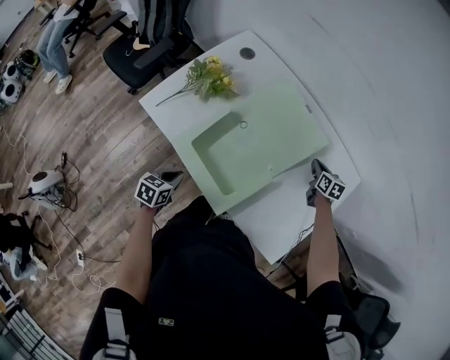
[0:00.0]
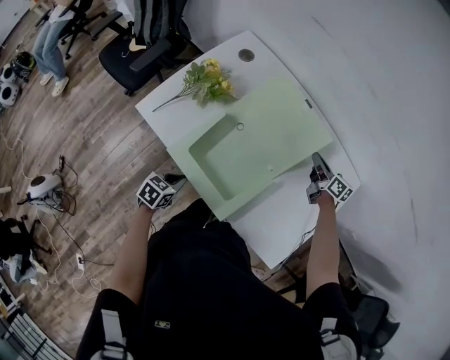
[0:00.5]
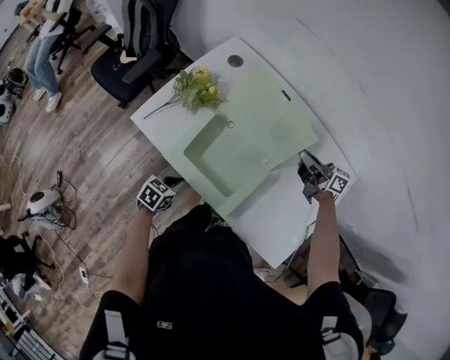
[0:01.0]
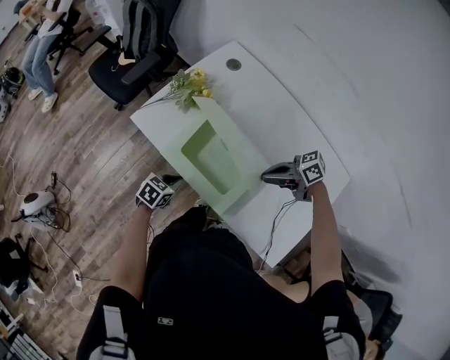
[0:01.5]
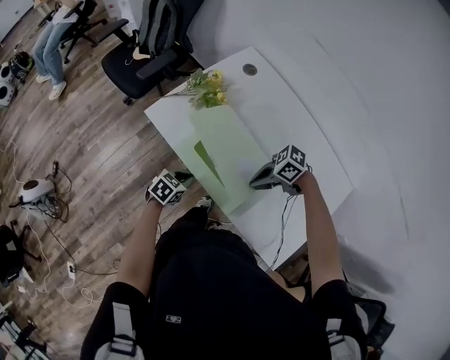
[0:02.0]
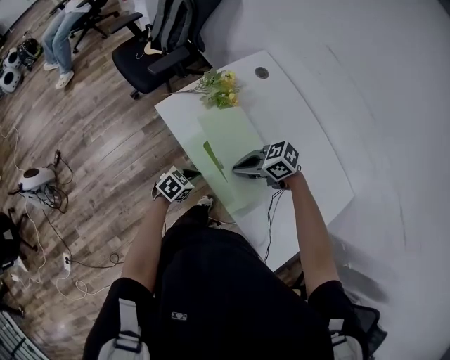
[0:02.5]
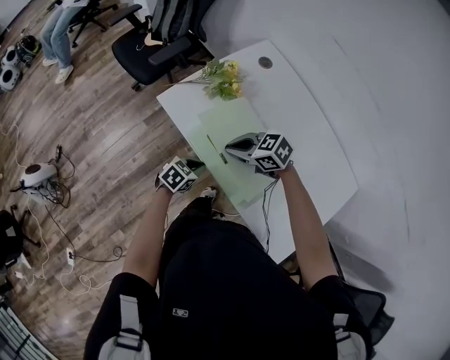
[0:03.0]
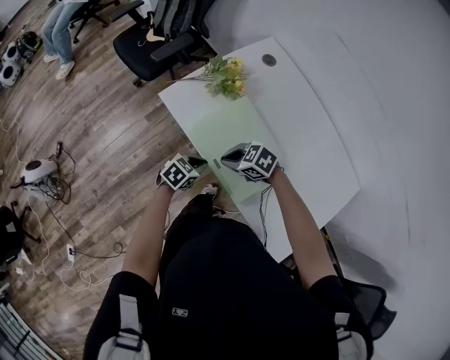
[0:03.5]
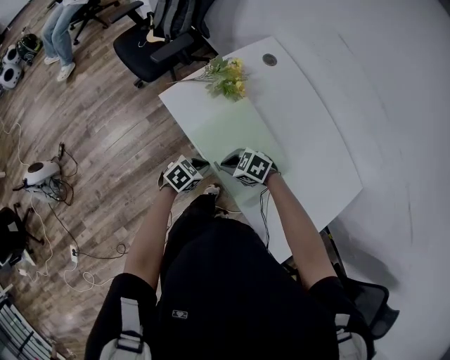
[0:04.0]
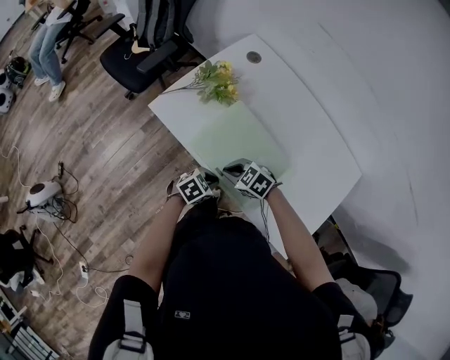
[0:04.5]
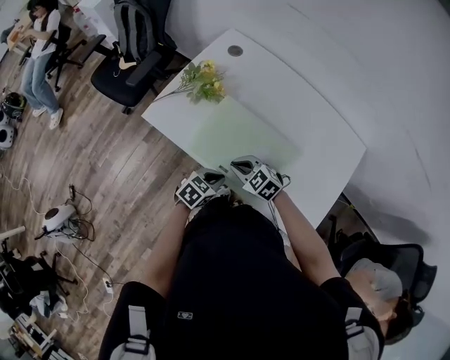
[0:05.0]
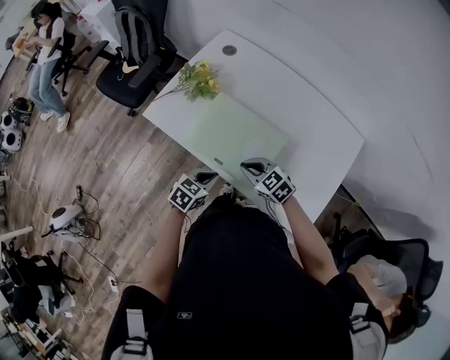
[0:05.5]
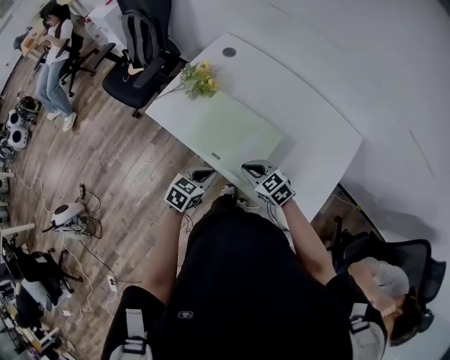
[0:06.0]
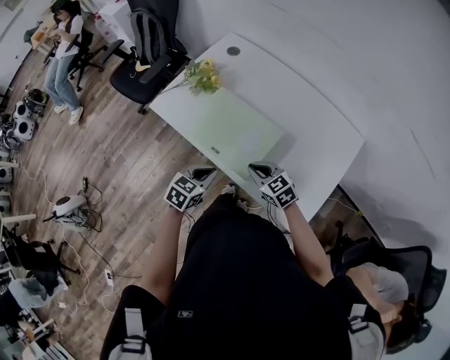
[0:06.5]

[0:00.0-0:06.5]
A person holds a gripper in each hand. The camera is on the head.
0:00.0 to 0:02.0: The right gripper changes place by some 35 cm, and swivels approximately 90 degrees.
0:02.0 to 0:04.5: The left gripper shifts by approximately 5 cm; the right gripper moves approximately 15 cm, and swivels some 40 degrees.
0:04.5 to 0:06.5: The right gripper shifts by approximately 15 cm, and rotates about 30 degrees. The left gripper travels upward by about 10 cm, and changes its angle by some 20 degrees.

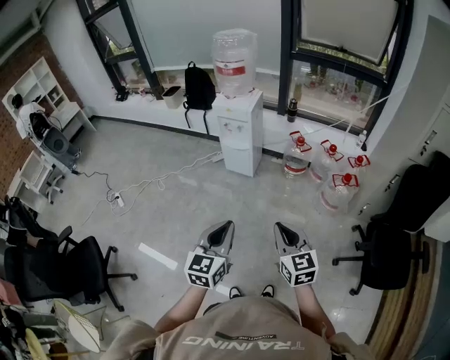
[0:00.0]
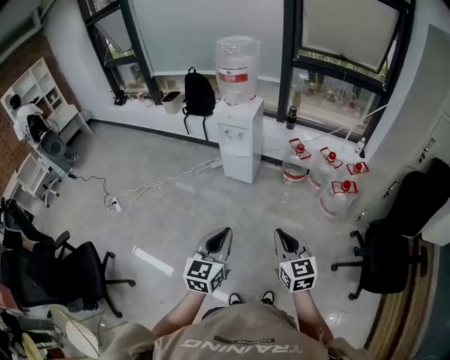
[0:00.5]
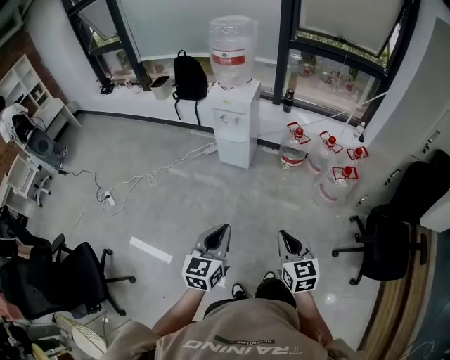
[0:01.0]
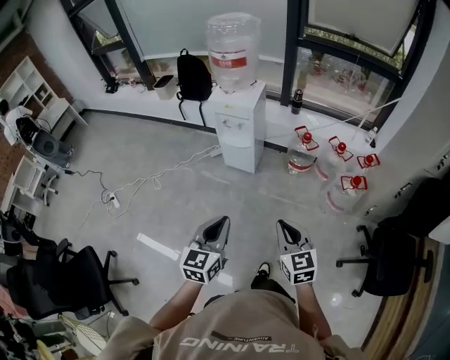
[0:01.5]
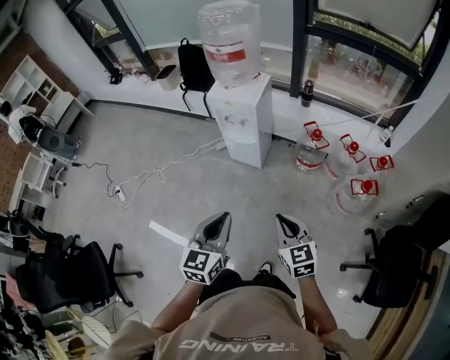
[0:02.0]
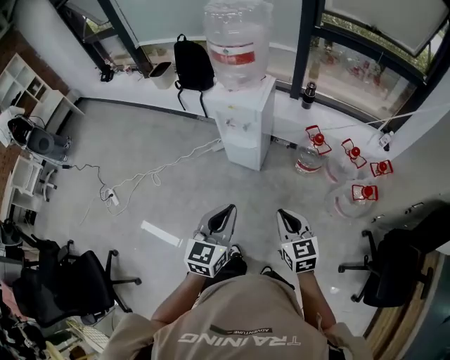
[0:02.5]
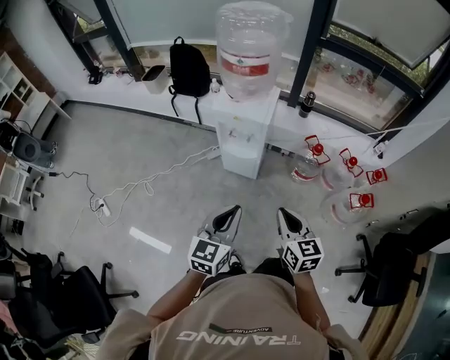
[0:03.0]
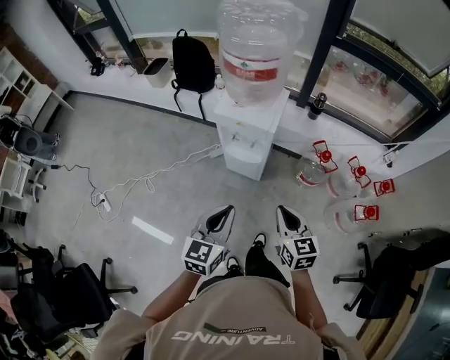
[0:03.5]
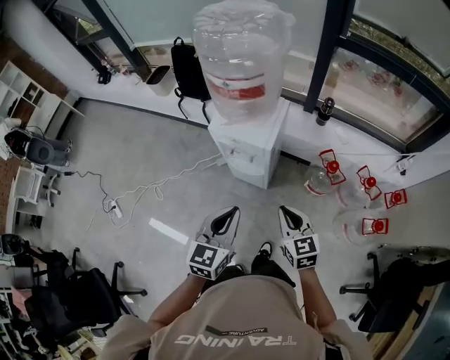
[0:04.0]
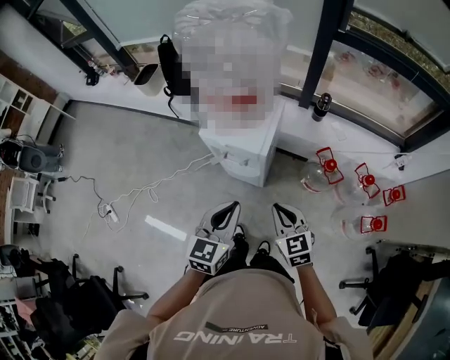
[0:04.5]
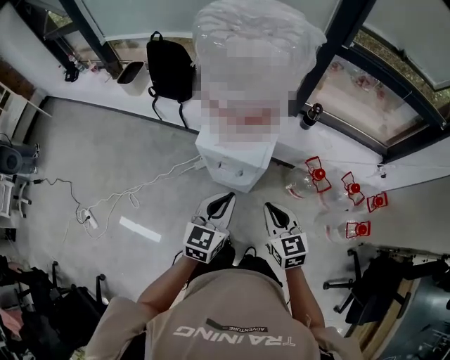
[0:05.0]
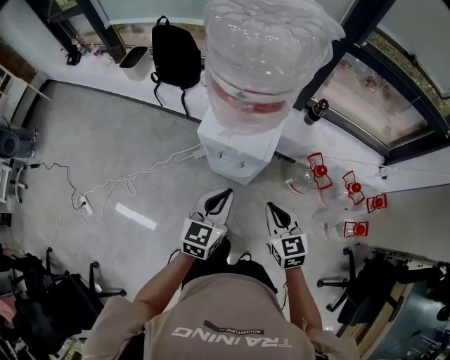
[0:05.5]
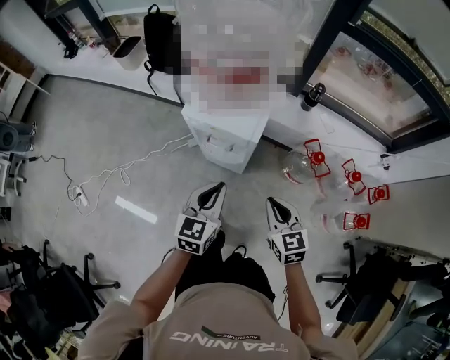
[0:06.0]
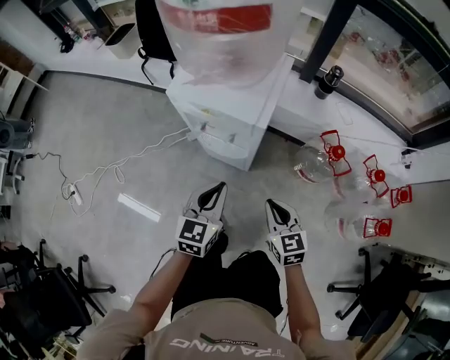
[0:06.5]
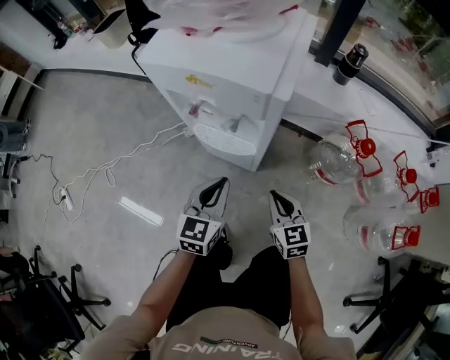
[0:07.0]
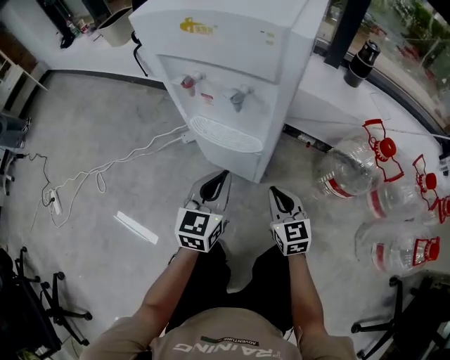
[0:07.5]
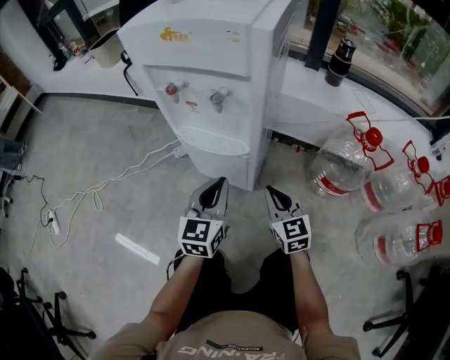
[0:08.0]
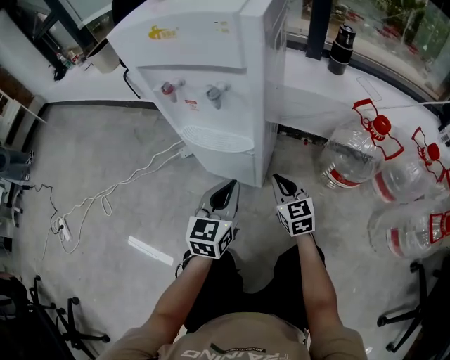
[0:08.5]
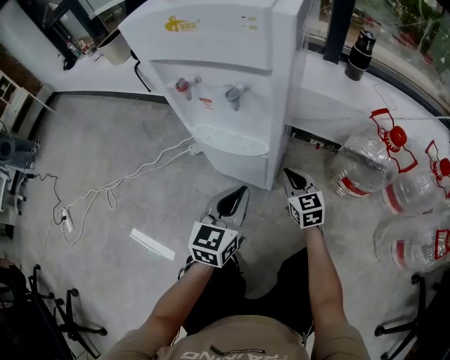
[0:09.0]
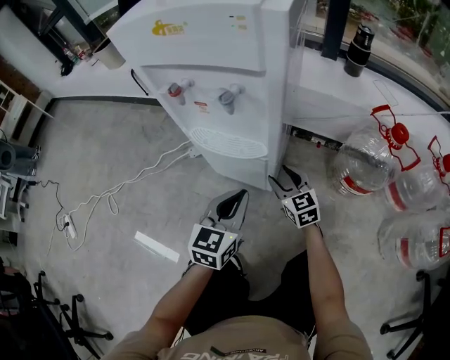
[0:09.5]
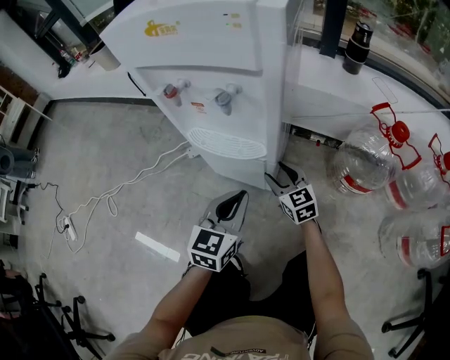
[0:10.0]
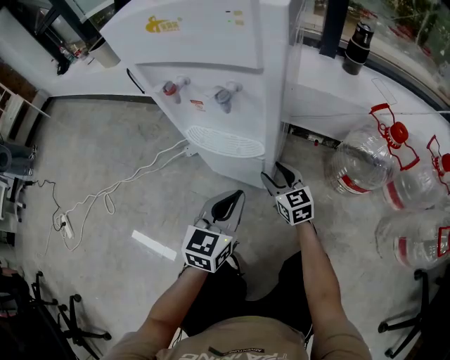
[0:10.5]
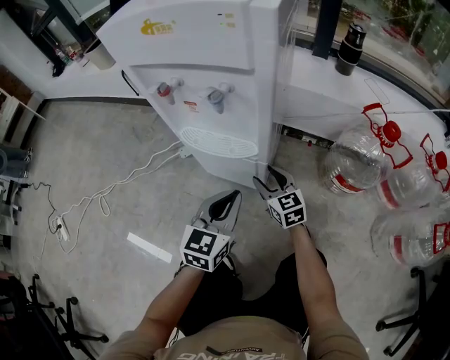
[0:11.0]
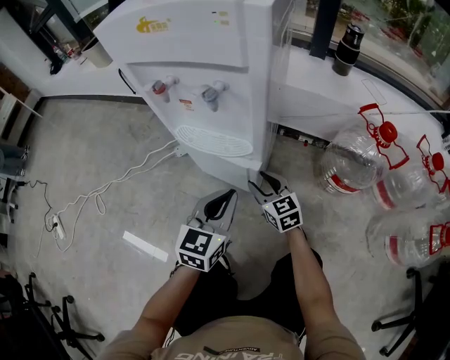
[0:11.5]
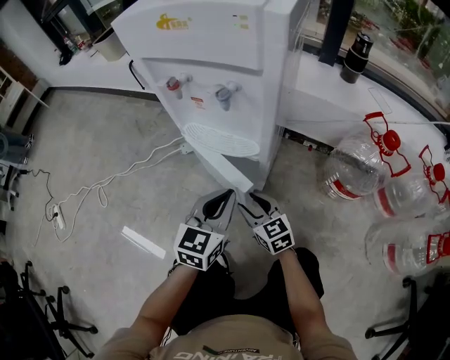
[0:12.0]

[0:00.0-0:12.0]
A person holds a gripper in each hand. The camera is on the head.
0:00.0 to 0:02.0: Both grippers travel together forward, about 25 cm.
0:02.0 to 0:04.0: Both grippers travel together forward, roughly 30 cm.
0:04.0 to 0:06.0: The right gripper shifts about 10 cm downward and forward, while the left gripper moves downward and forward, about 15 cm.
0:06.0 to 0:08.0: Both grippers move downward, about 40 cm.
0:08.0 to 0:10.0: The right gripper shifts roughly 15 cm forward and downward, and opens its fingers.
0:10.0 to 0:12.0: The right gripper moves backward and to the left, approximately 10 cm.

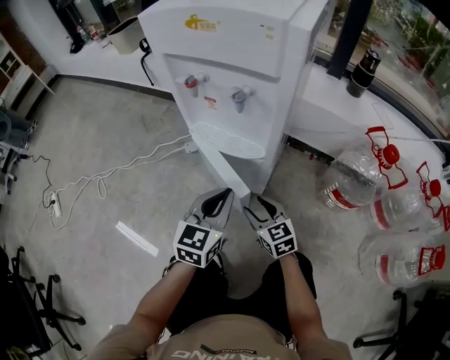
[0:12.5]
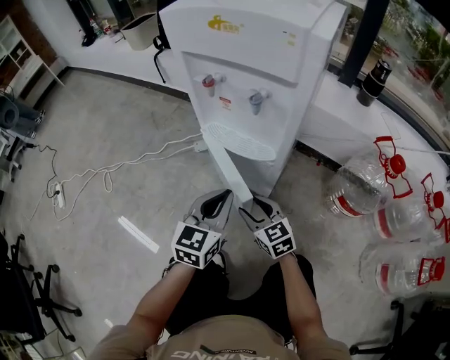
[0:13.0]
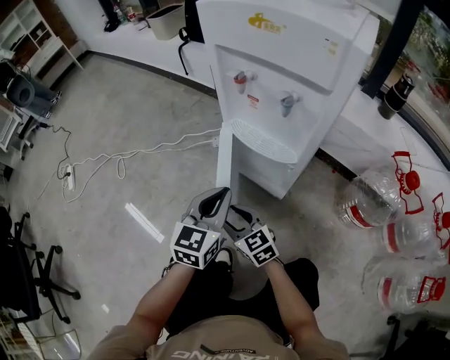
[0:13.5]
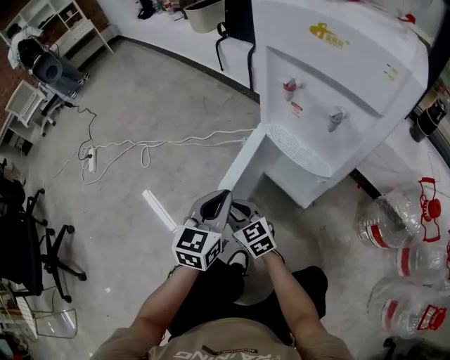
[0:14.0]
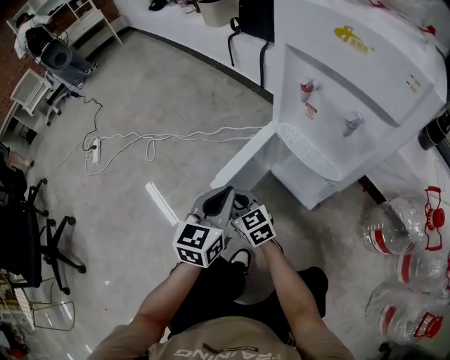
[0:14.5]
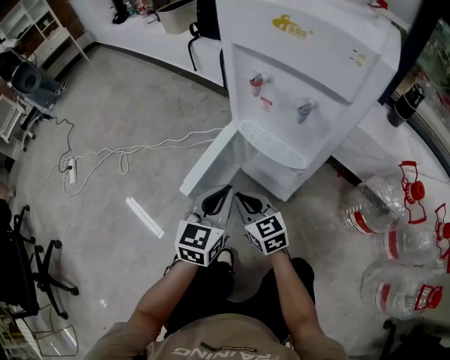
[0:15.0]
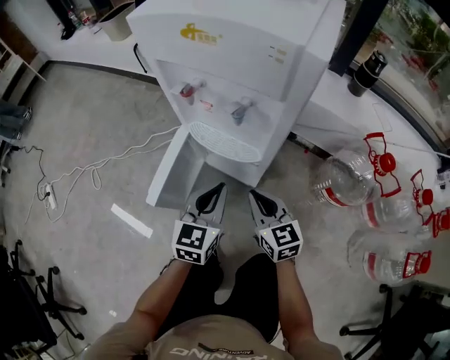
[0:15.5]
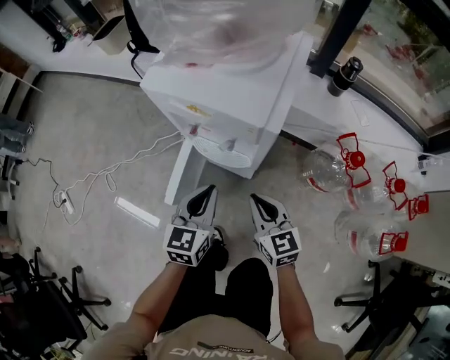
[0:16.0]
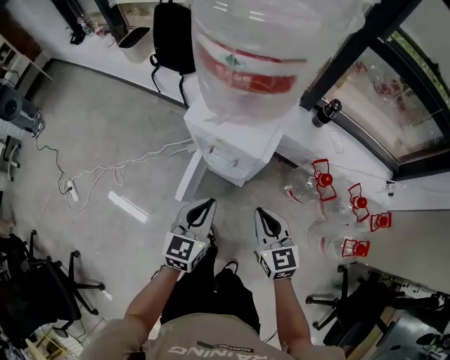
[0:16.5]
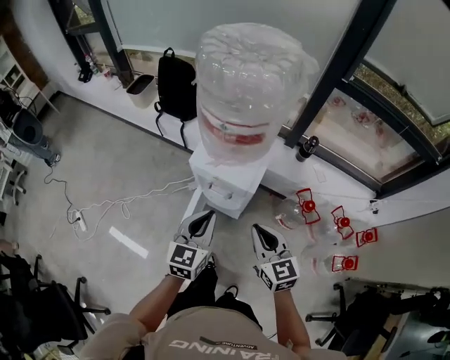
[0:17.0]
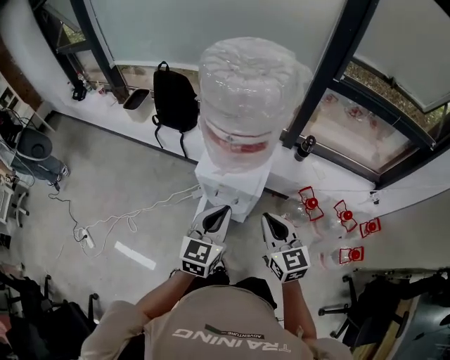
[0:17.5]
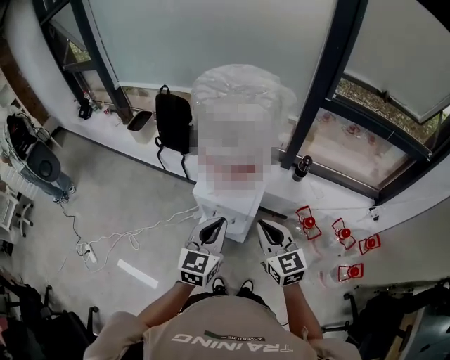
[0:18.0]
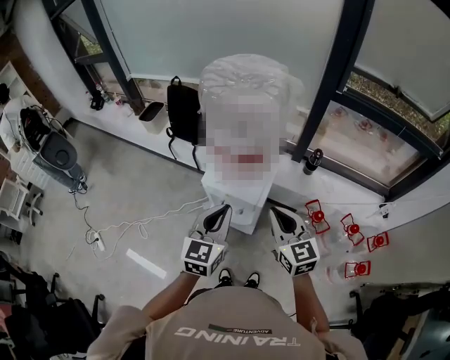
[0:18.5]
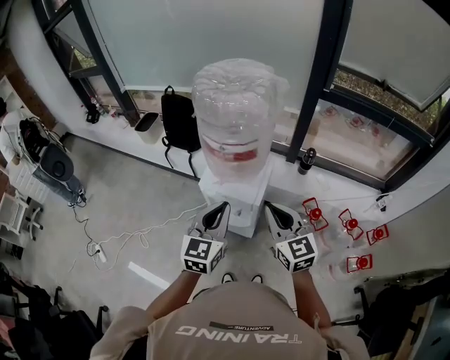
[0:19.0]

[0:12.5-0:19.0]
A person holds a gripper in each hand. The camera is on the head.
0:12.5 to 0:14.5: The right gripper changes place by about 25 cm, turns by about 30 degrees, and closes; the left gripper moves about 20 cm, and turns by roughly 20 degrees.
0:14.5 to 0:17.0: The grippers both shift upward by some 60 cm. The right gripper changes its angle by some 40 degrees, while the left gripper turns by some 20 degrees.
0:17.0 to 0:19.0: Both grippers travel together upward, some 10 cm.

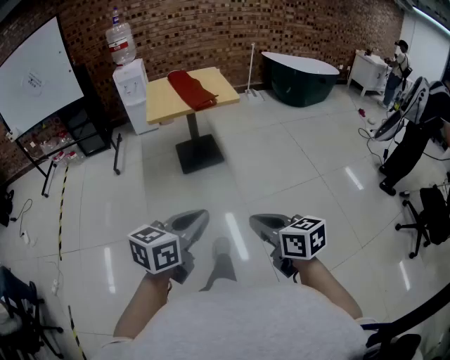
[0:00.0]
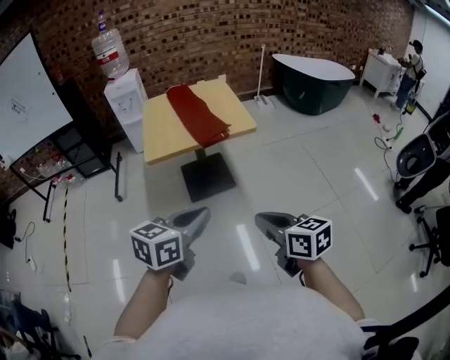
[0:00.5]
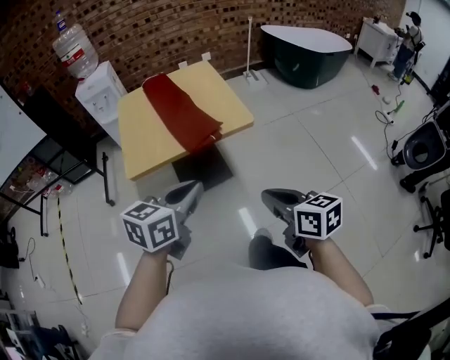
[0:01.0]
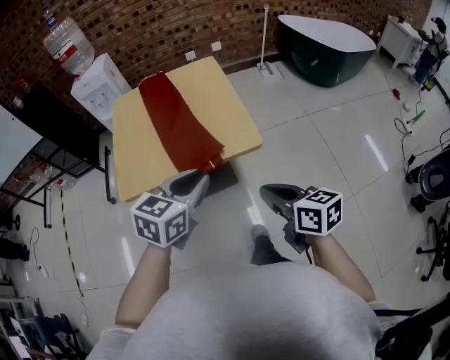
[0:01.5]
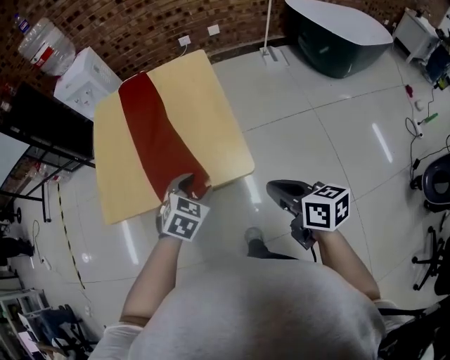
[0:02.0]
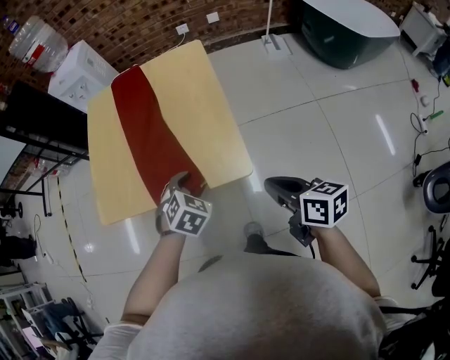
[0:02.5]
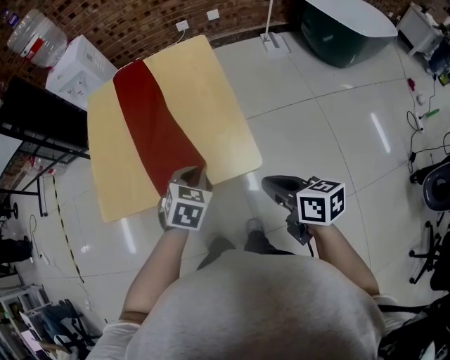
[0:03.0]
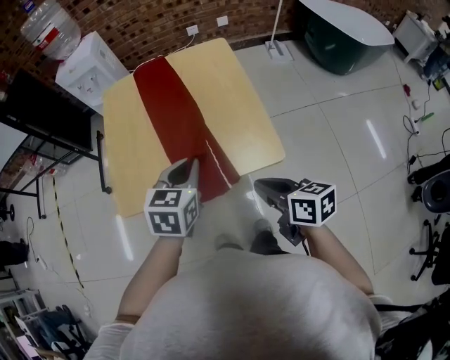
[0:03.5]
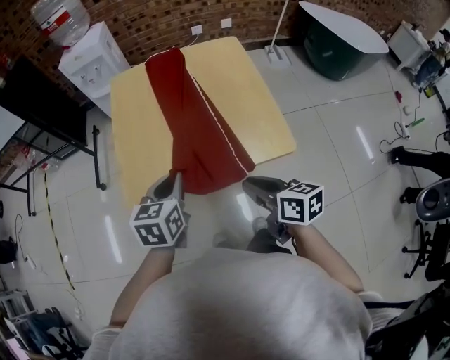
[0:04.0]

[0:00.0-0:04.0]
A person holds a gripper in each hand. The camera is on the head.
0:00.0 to 0:02.0: Both grippers are carried forward, about 90 cm. The left gripper tips its fingers downward by about 40 degrees, and opens its fingers.
0:02.0 to 0:04.0: The two grippers go roughly 25 cm to the left. The left gripper turns by about 40 degrees, and closes up.
